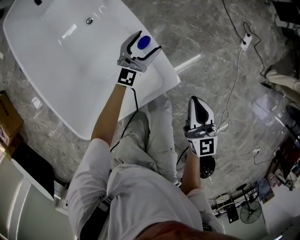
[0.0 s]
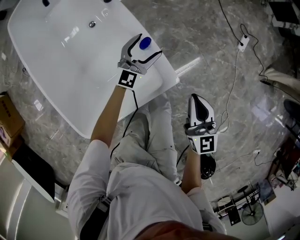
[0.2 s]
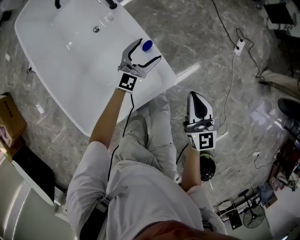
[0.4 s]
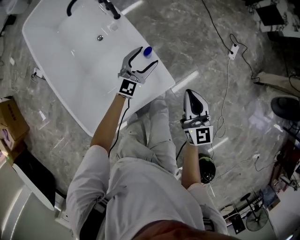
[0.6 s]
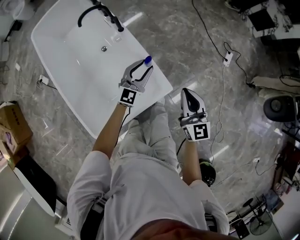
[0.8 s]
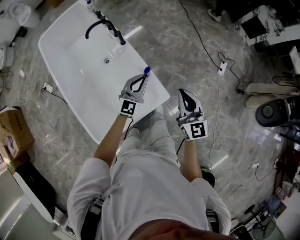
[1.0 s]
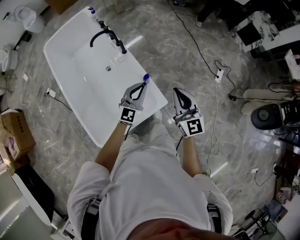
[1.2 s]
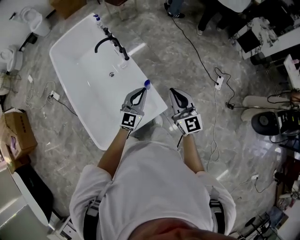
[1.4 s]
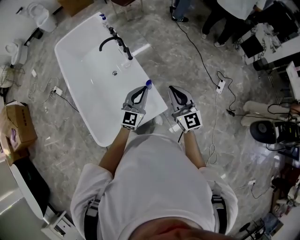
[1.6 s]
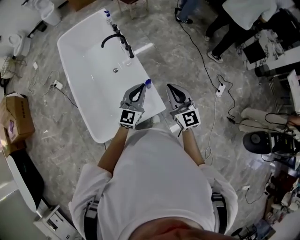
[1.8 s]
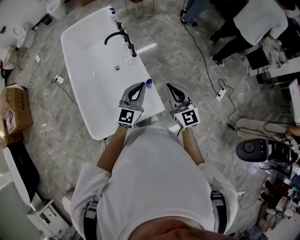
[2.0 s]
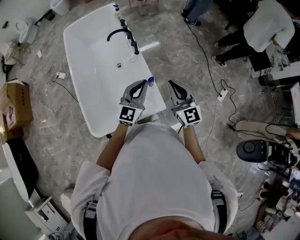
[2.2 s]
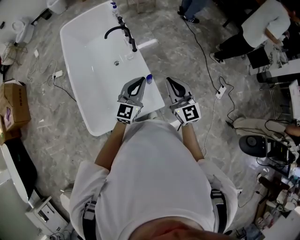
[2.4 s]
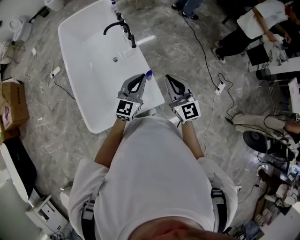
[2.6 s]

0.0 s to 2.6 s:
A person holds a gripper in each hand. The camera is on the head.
0.0 to 1.2 s: The two grippers go about 30 cm upward. The left gripper closes its fingers.
1.2 to 2.6 s: The left gripper moves upward, roughly 10 cm. Meanwhile the right gripper moves approximately 5 cm.

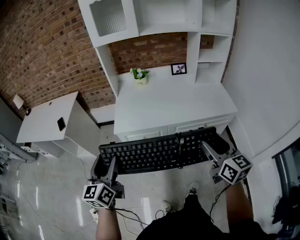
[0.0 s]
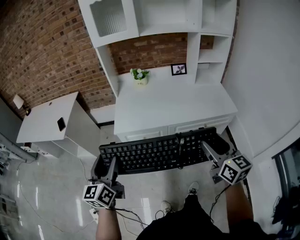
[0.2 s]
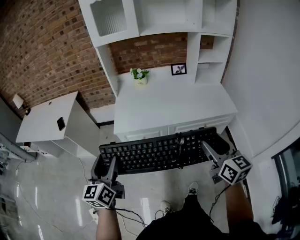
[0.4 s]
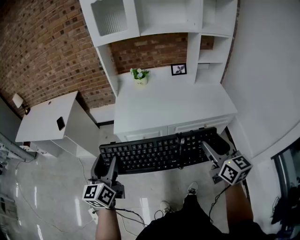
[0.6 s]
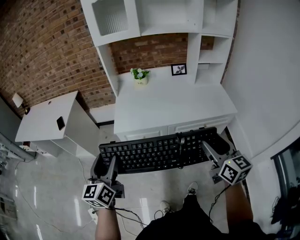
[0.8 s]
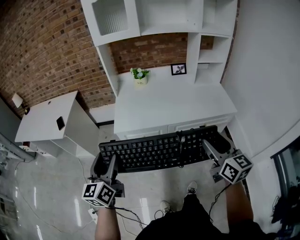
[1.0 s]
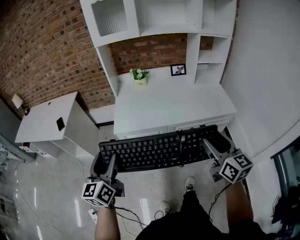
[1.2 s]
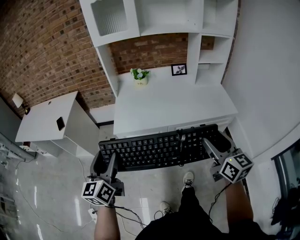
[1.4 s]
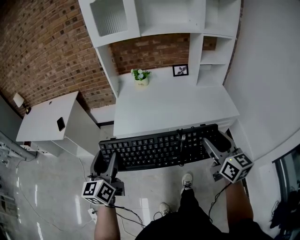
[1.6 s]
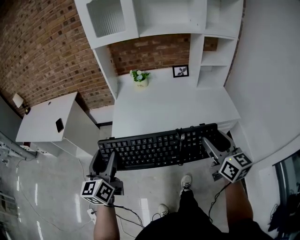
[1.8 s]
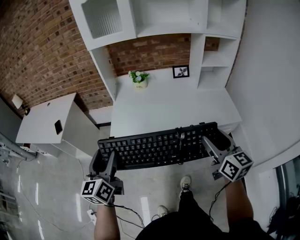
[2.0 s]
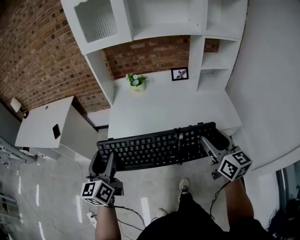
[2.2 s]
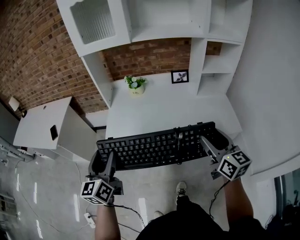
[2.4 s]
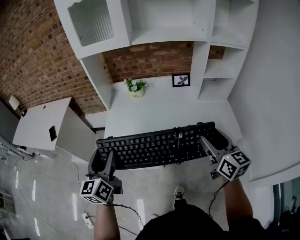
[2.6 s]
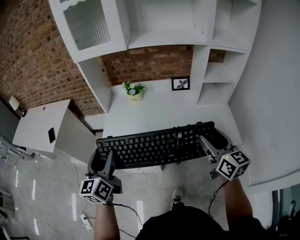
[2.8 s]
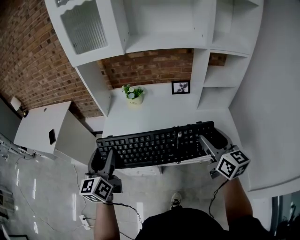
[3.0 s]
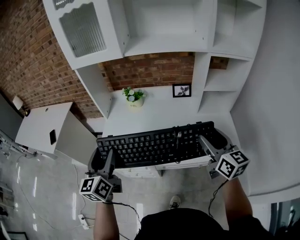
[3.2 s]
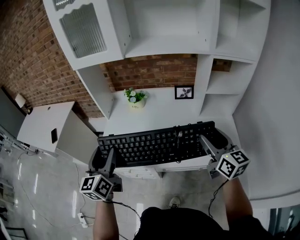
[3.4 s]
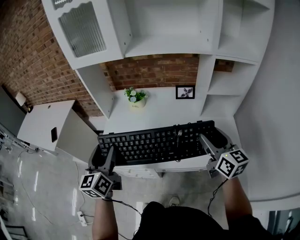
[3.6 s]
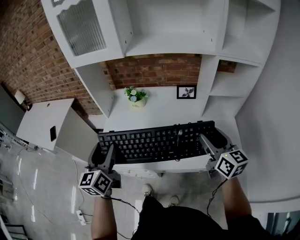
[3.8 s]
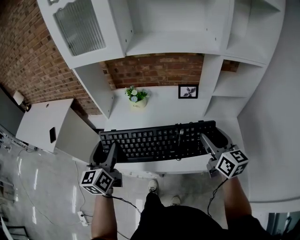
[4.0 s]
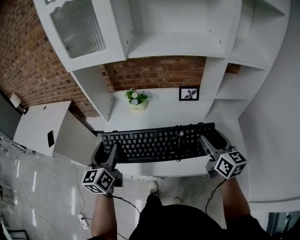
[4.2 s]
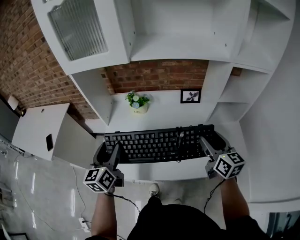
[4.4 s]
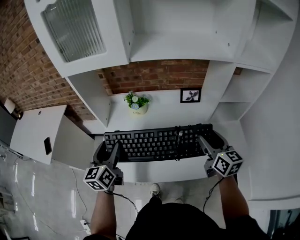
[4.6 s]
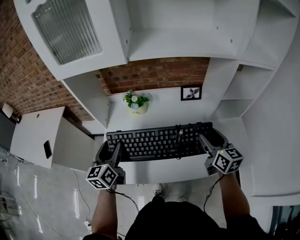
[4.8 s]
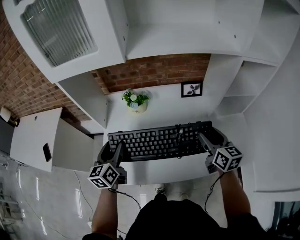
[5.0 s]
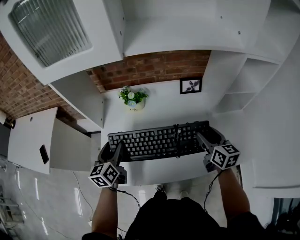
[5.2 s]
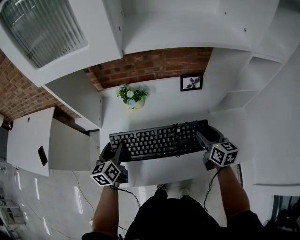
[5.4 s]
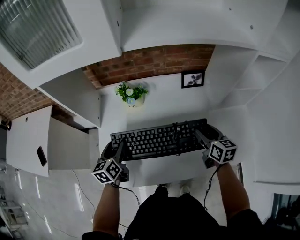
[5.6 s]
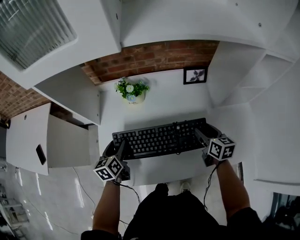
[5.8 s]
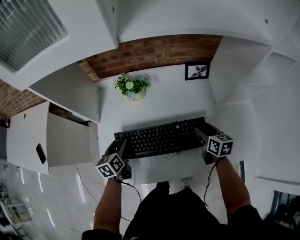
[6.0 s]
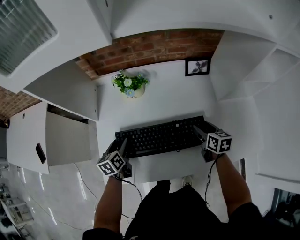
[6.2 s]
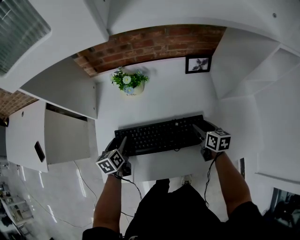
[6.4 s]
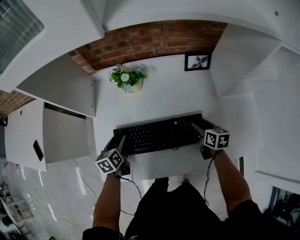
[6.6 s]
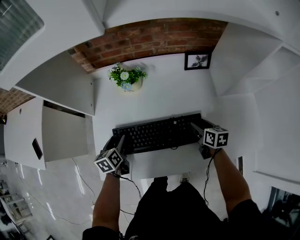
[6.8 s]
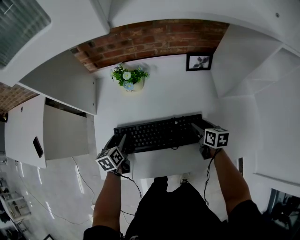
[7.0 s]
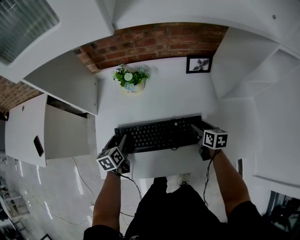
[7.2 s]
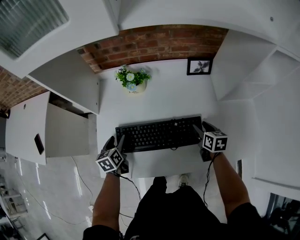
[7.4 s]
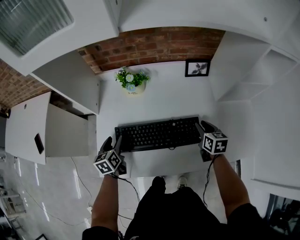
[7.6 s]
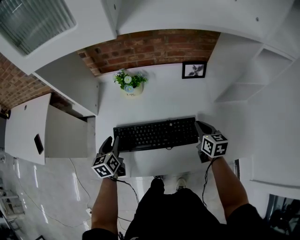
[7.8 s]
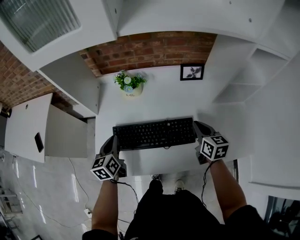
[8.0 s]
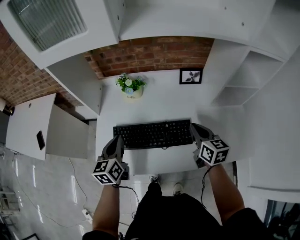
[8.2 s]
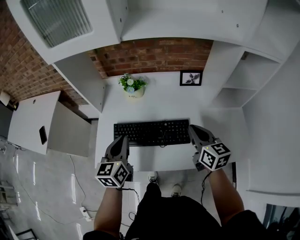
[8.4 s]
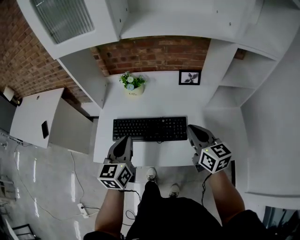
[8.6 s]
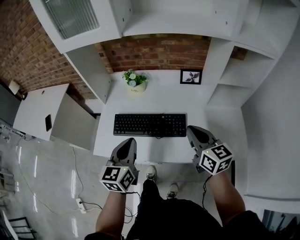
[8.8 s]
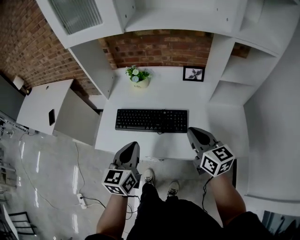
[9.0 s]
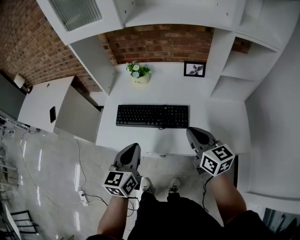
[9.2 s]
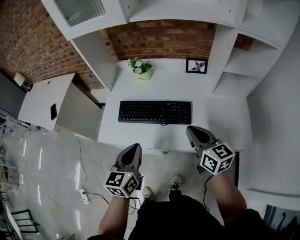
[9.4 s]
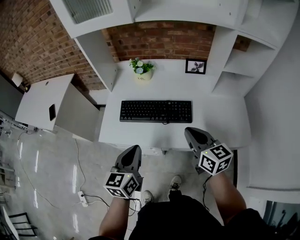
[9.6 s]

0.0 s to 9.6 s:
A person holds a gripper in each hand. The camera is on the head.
0.0 to 1.6 s: The grippers make only small movements.
1.6 to 3.2 s: The two grippers go some 30 cm forward and to the right.
3.2 to 4.8 s: The grippers both shift forward and downward by some 20 cm.
4.8 to 6.4 s: Both grippers move downward, roughly 25 cm. The left gripper changes its angle by about 30 degrees. The right gripper changes its angle by about 30 degrees.
6.4 to 8.0 s: Both grippers travel together upward, about 10 cm. The right gripper closes up, while the left gripper closes up.
8.0 to 9.6 s: The left gripper moves backward and upward, some 25 cm. Meanwhile the right gripper heads backward, upward and to the left, covering some 20 cm, and changes its angle by approximately 20 degrees.

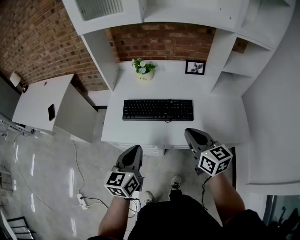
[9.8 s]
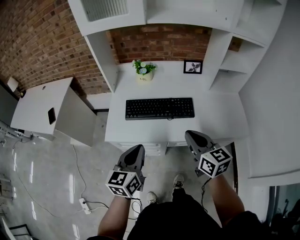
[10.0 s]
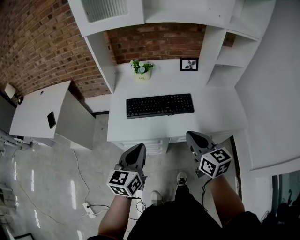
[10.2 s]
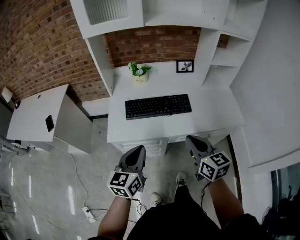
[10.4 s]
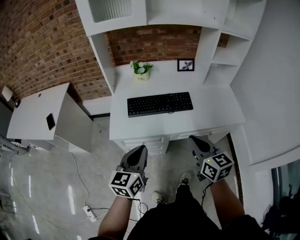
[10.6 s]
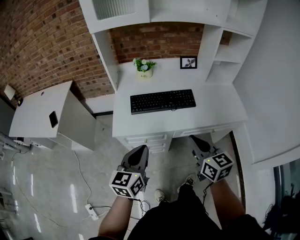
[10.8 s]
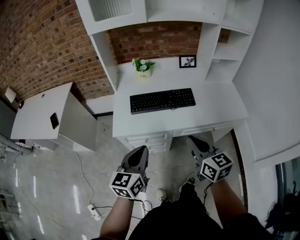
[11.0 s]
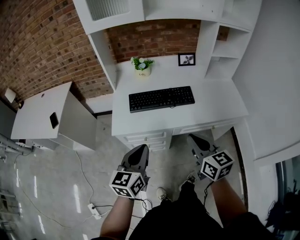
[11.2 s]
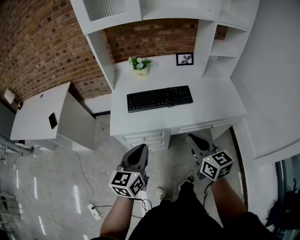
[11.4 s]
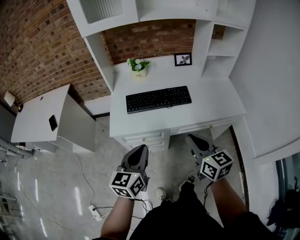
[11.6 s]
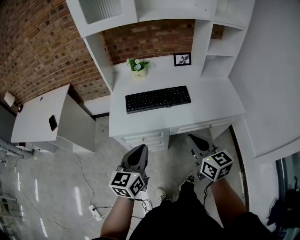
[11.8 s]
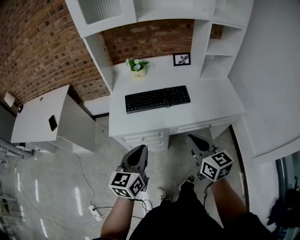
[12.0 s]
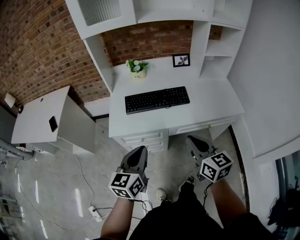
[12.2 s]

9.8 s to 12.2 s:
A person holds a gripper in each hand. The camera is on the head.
9.8 to 11.0 s: Both grippers move backward and to the left, roughly 15 cm.
11.0 to 12.2 s: There are only small adjustments of the grippers.

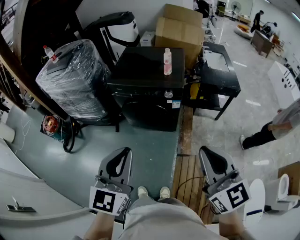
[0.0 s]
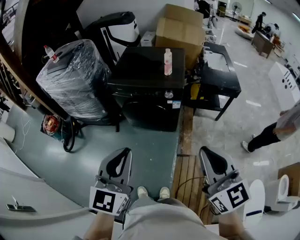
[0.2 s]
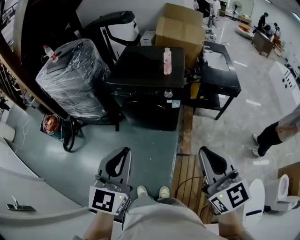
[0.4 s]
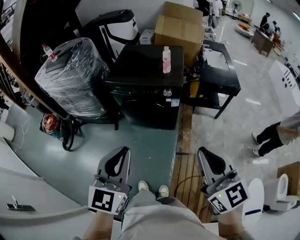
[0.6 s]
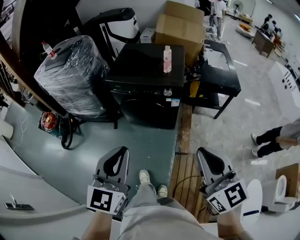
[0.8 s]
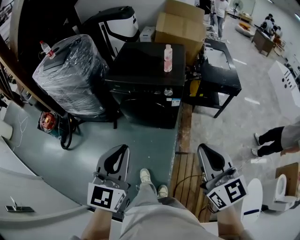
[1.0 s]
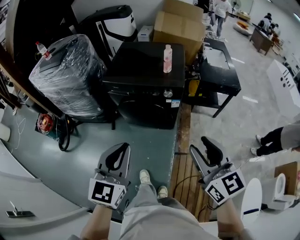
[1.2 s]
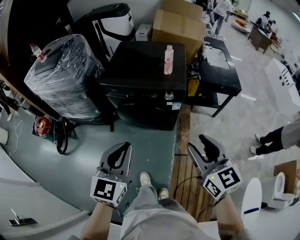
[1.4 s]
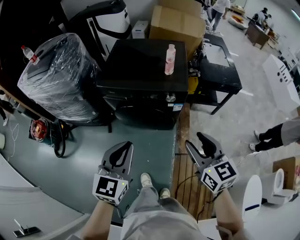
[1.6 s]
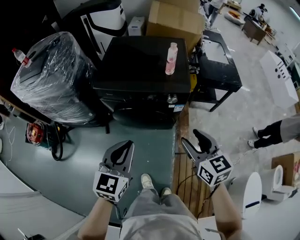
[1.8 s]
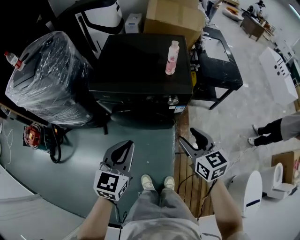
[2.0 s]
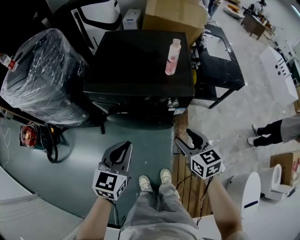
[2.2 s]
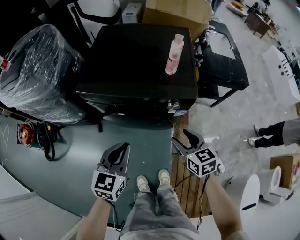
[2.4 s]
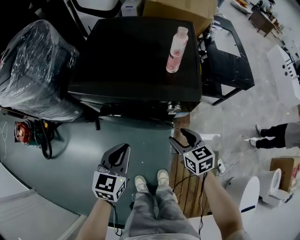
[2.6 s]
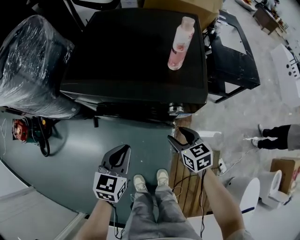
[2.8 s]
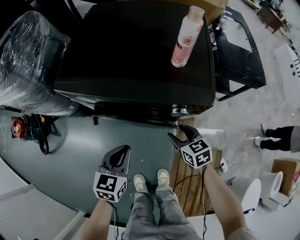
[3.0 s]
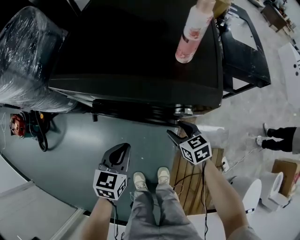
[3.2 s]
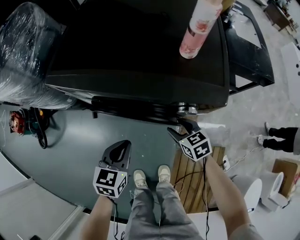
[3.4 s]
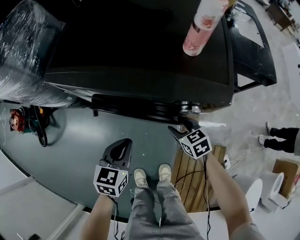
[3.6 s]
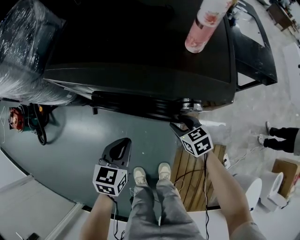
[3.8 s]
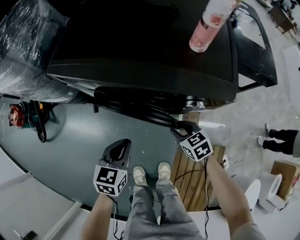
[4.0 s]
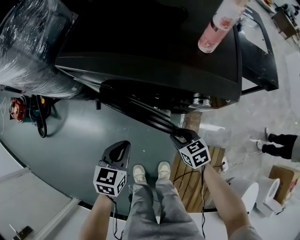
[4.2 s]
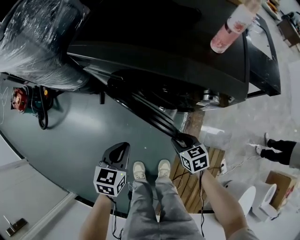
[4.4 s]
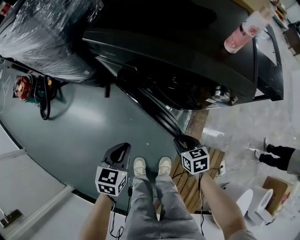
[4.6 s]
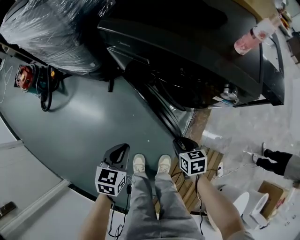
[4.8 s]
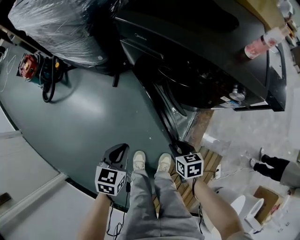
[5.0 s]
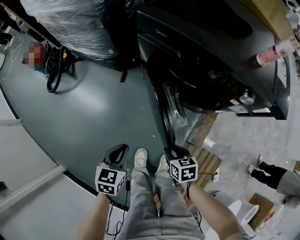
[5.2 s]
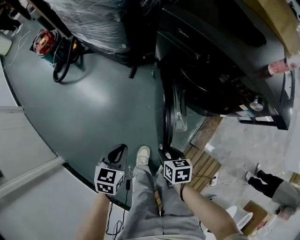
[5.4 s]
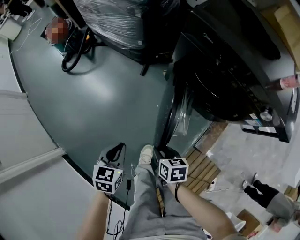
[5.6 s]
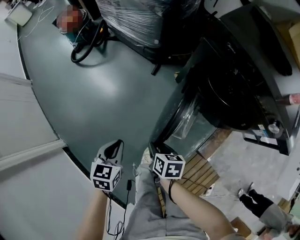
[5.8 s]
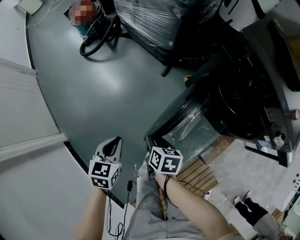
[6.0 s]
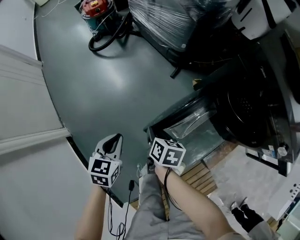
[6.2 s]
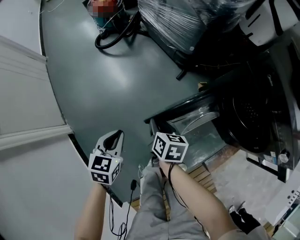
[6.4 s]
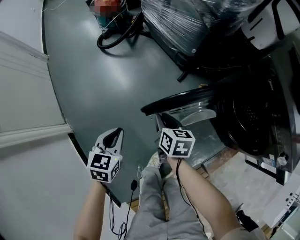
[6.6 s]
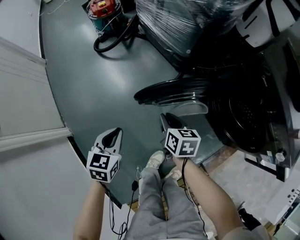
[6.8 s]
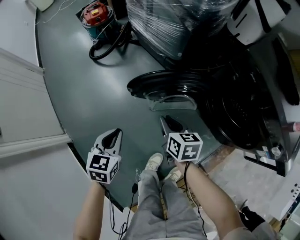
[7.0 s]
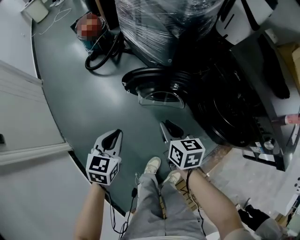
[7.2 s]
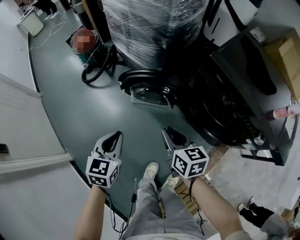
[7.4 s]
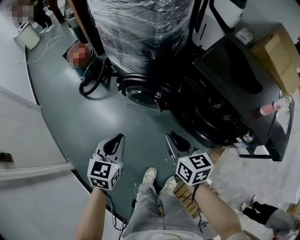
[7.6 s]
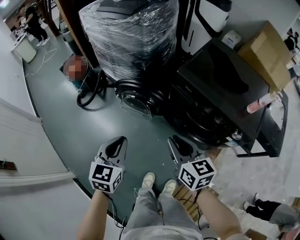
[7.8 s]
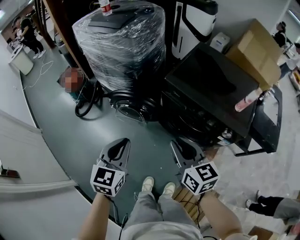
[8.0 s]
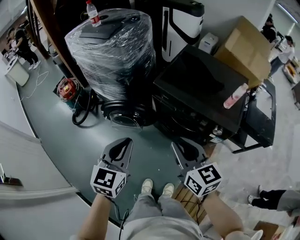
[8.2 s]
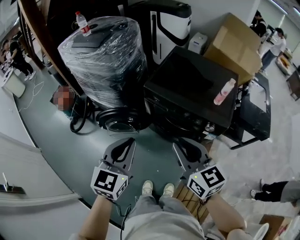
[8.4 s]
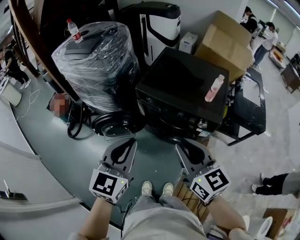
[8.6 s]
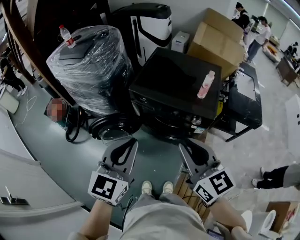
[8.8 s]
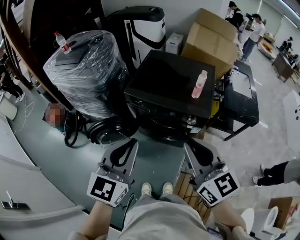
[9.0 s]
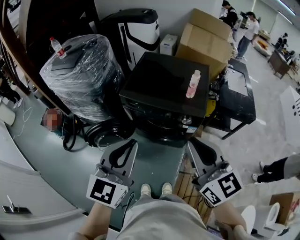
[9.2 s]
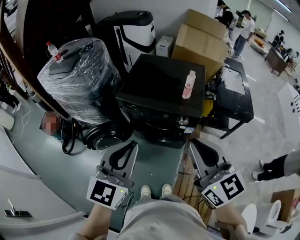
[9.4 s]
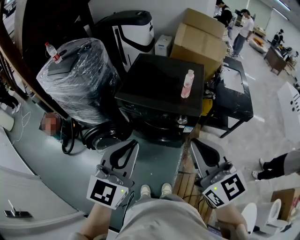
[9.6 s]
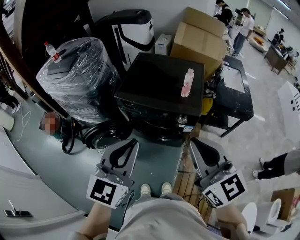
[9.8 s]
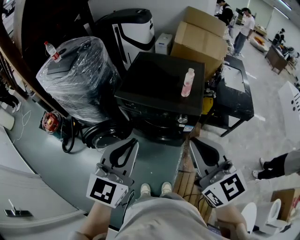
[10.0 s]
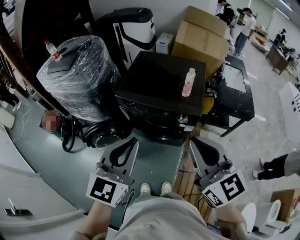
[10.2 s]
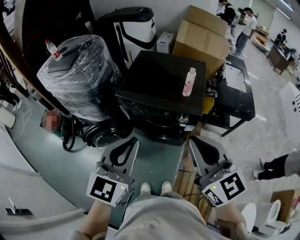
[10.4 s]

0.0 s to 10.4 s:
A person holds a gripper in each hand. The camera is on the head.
0.0 to 1.4 s: The two grippers go approximately 15 cm forward and downward. The right gripper opens.
1.4 to 3.0 s: Both grippers travel together downward and forward, some 50 cm. The left gripper swivels roughly 30 degrees, while the right gripper rotates about 30 degrees.
3.0 to 4.4 s: The left gripper is displaced downward, to the left and backward by about 10 cm, while the right gripper is displaced downward, backward and to the left by about 15 cm.
4.4 to 6.0 s: The pair of grippers is taken about 40 cm. The left gripper changes its angle by roughly 40 degrees.
6.0 to 7.4 s: The left gripper heads upward and forward, covering approximately 20 cm; the right gripper goes some 20 cm upward, and rotates approximately 30 degrees.
7.4 to 9.0 s: The two grippers go about 40 cm upward. The right gripper swivels approximately 40 degrees. The left gripper swivels about 50 degrees.
9.0 to 10.4 s: The left gripper is displaced to the right by approximately 5 cm, while the right gripper ends up some 5 cm from where it was.
